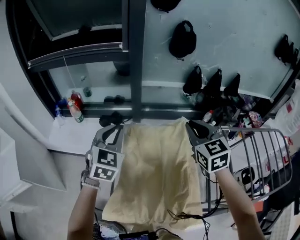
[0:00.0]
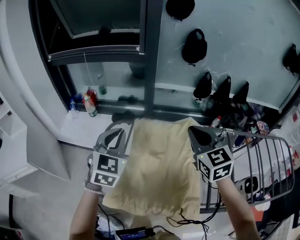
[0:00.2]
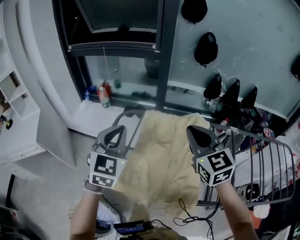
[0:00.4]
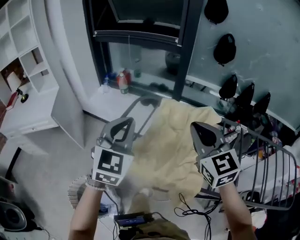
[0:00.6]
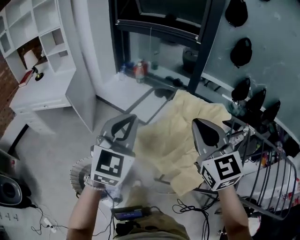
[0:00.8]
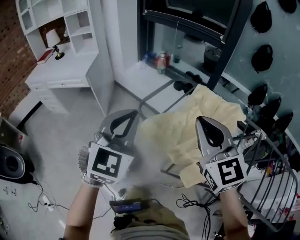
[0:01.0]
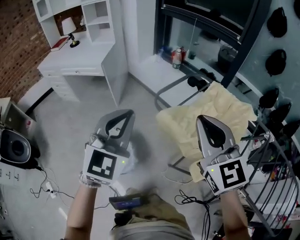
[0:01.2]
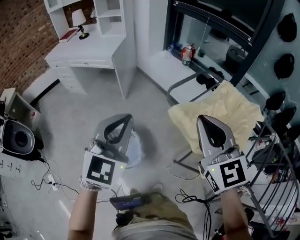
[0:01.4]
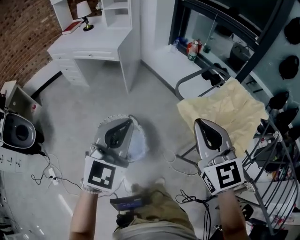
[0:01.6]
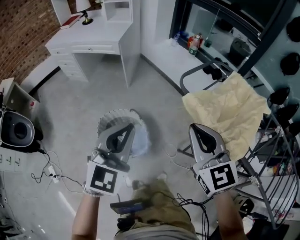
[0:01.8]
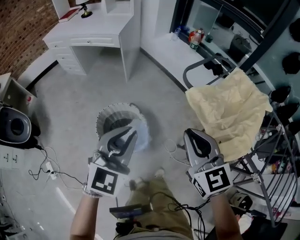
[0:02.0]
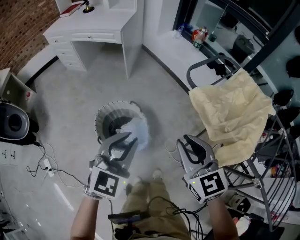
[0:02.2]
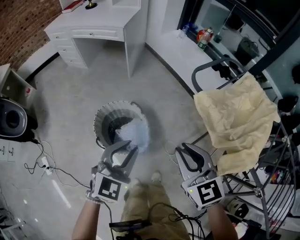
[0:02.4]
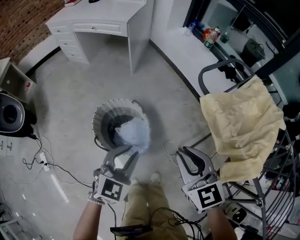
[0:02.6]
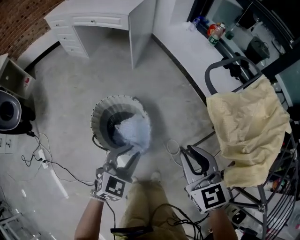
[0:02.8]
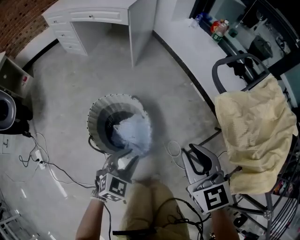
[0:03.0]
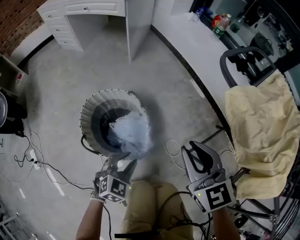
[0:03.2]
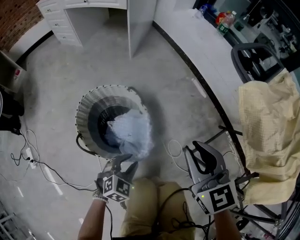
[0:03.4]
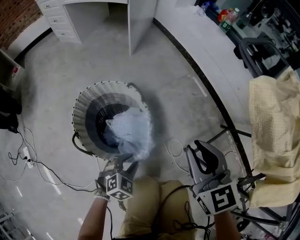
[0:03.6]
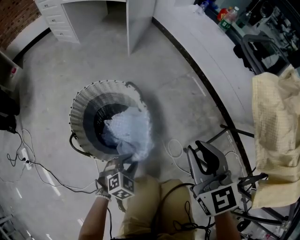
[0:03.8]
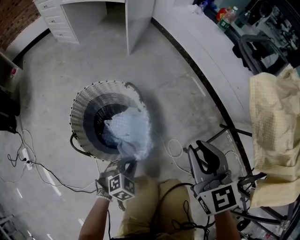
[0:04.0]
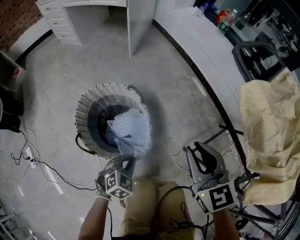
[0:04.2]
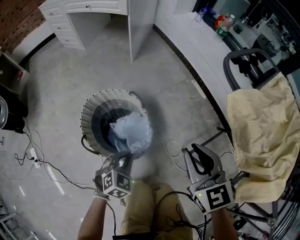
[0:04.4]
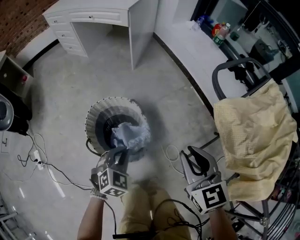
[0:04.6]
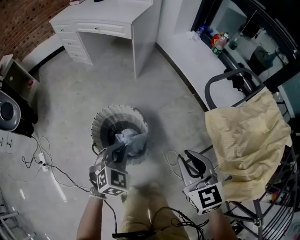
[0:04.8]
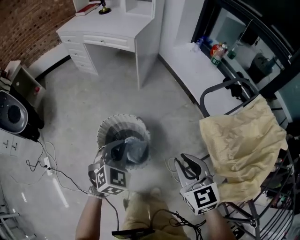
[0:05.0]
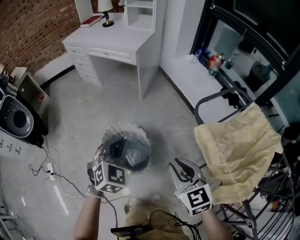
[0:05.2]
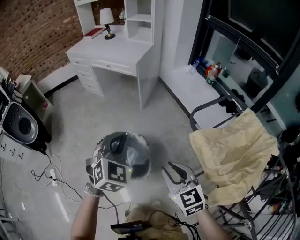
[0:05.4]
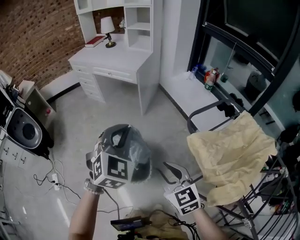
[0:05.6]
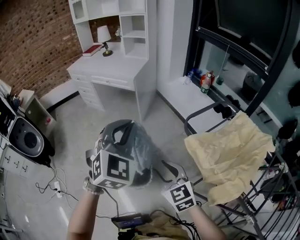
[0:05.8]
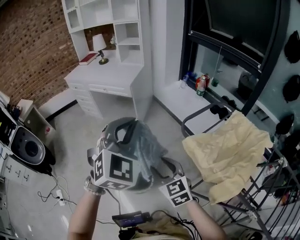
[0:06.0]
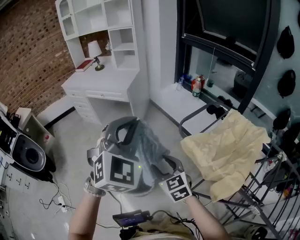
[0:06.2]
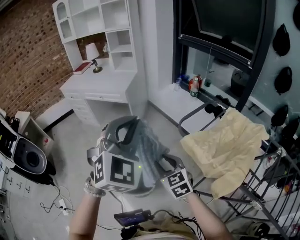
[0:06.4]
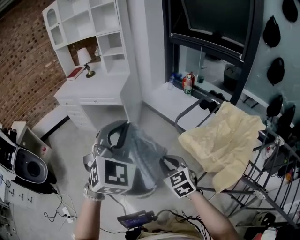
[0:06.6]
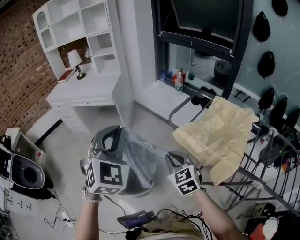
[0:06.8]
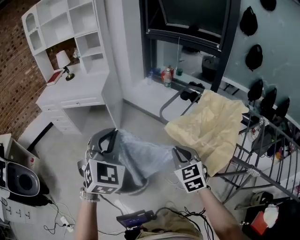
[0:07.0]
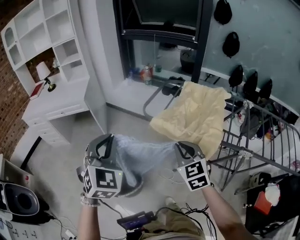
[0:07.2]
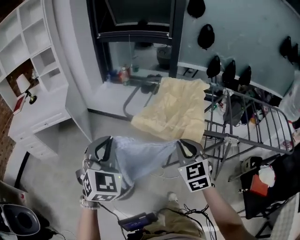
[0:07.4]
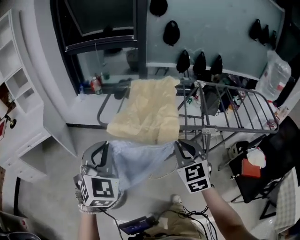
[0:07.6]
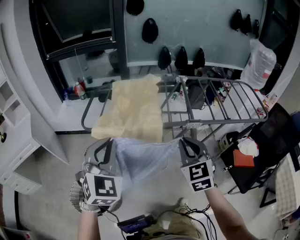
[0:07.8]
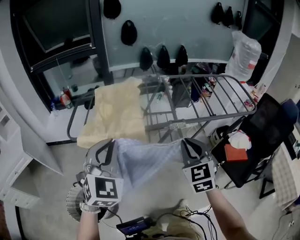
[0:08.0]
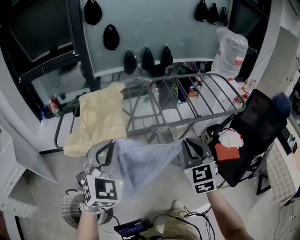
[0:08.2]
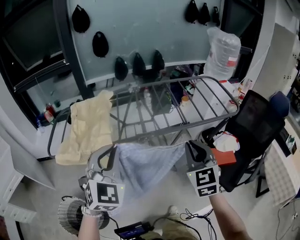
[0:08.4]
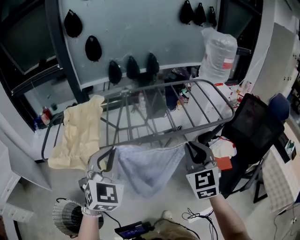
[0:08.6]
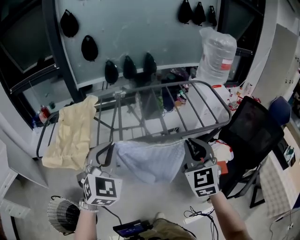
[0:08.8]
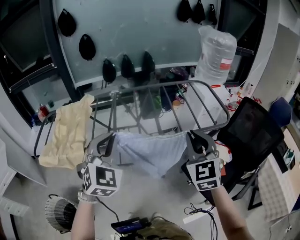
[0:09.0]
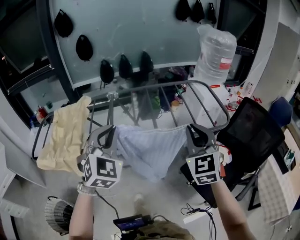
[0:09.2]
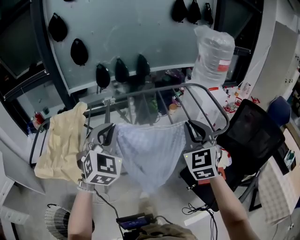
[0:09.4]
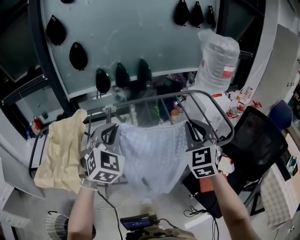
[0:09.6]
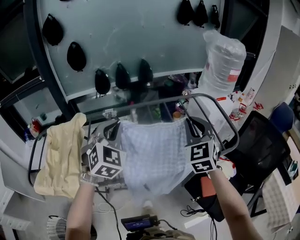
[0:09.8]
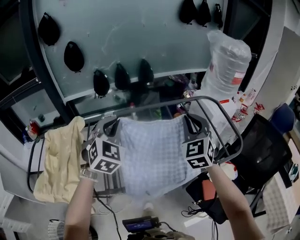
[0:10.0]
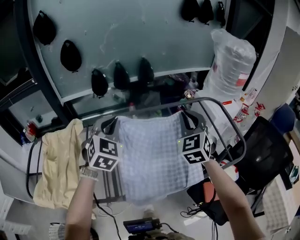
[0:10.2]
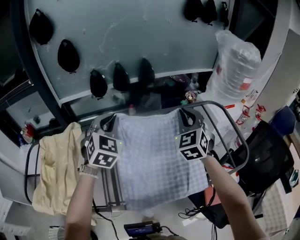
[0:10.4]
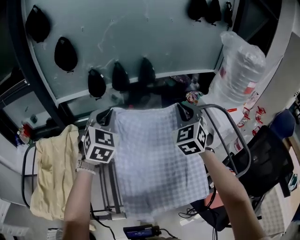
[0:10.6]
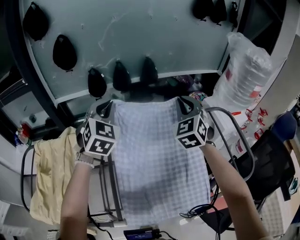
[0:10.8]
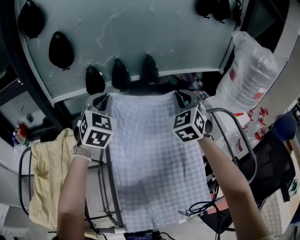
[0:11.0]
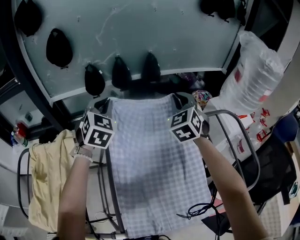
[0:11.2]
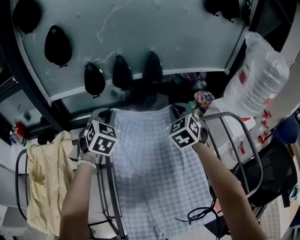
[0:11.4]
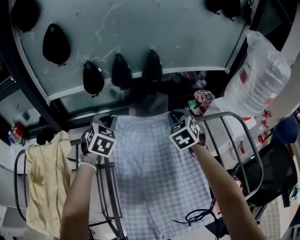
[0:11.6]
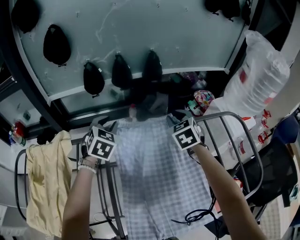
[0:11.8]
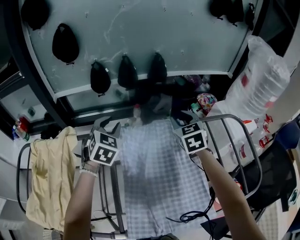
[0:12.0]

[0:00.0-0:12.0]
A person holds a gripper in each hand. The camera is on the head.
0:00.0 to 0:01.6: The pair of grippers is taken approximately 60 cm. The right gripper rotates approximately 50 degrees. Meanwhile the left gripper changes its angle by some 40 degrees.
0:01.6 to 0:03.0: The two grippers go about 35 cm downward. The left gripper rotates roughly 30 degrees, and opens up.
0:03.0 to 0:04.4: The left gripper is displaced downward by about 10 cm, and closes; the right gripper goes some 5 cm downward.
0:04.4 to 0:06.0: The right gripper moves upward, some 20 cm, and opens its fingers, while the left gripper heads upward, covering approximately 60 cm, and tips its fingers upward by some 30 degrees.
0:06.0 to 0:07.6: The right gripper ends up approximately 35 cm from where it was, turns by some 60 degrees, and closes up. The left gripper changes place by about 20 cm, and rotates roughly 40 degrees.
0:07.6 to 0:09.0: The pair of grippers is taken to the right, roughly 50 cm. The left gripper swivels roughly 20 degrees. Meanwhile the right gripper rotates about 30 degrees.
0:09.0 to 0:10.4: The grippers both shift forward by roughly 40 cm.
0:10.4 to 0:12.0: Both grippers move forward, downward and to the left, about 20 cm. The left gripper opens; the right gripper turns by roughly 30 degrees, and opens its fingers.

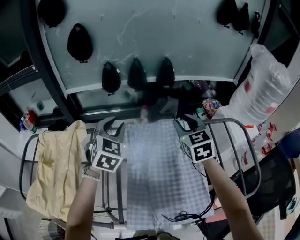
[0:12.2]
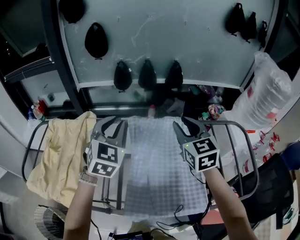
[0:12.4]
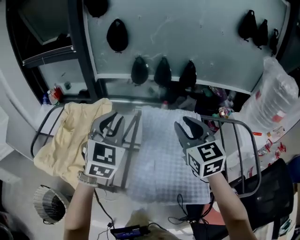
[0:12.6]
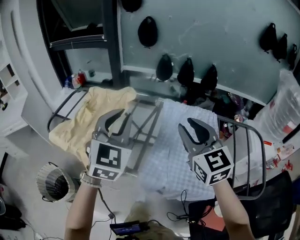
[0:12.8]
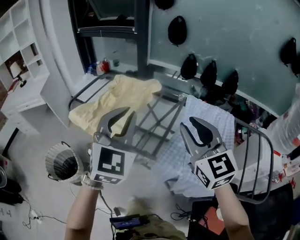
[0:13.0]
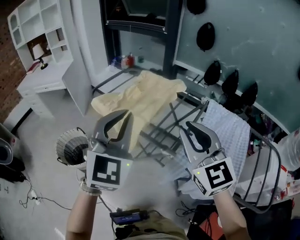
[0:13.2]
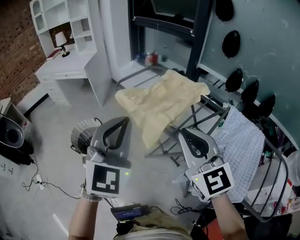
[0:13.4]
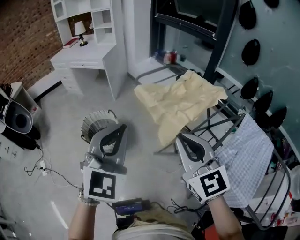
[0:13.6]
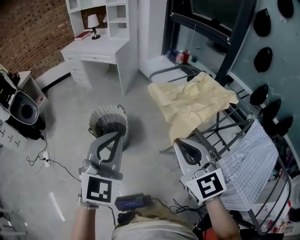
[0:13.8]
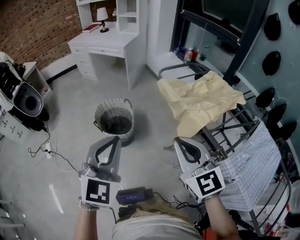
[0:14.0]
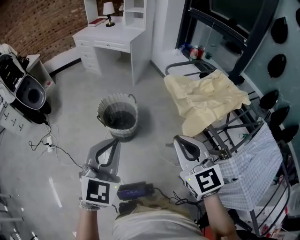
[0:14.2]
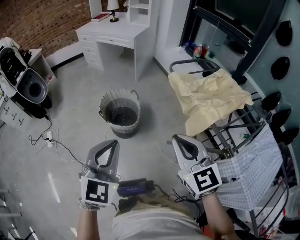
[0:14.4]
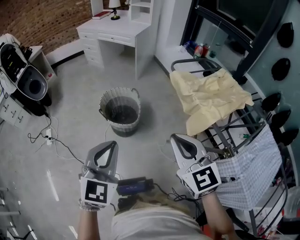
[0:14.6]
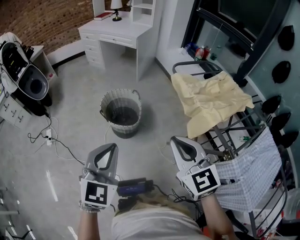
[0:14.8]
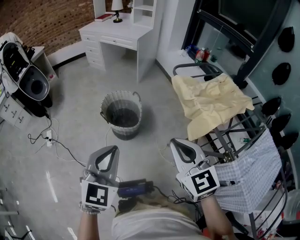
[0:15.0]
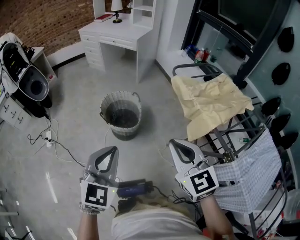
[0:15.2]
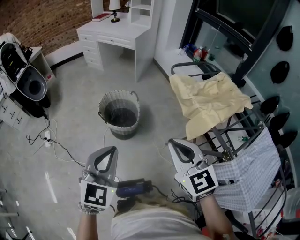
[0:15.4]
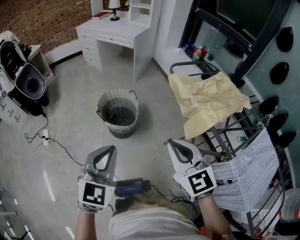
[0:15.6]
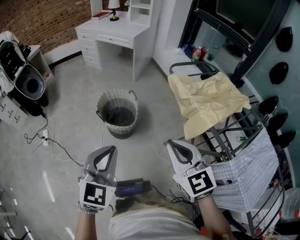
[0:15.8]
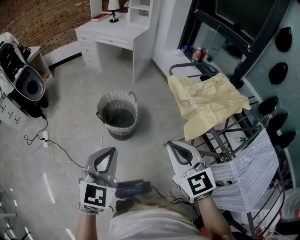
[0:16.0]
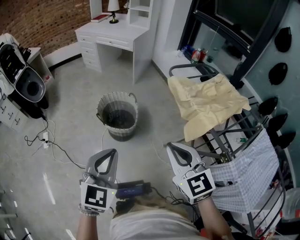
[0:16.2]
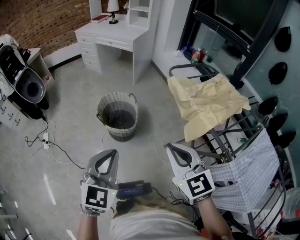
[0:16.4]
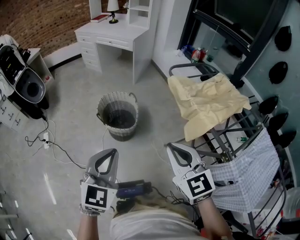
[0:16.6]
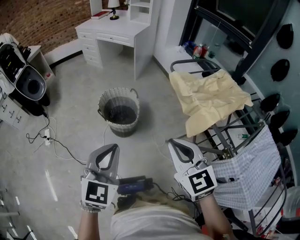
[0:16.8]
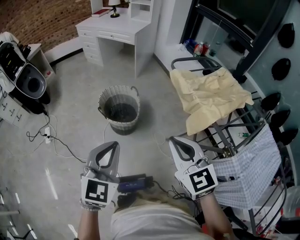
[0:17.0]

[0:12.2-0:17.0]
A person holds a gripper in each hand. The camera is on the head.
0:12.2 to 0:13.8: The two grippers travel together, some 70 cm. The left gripper swivels roughly 60 degrees, and closes its fingers. Meanwhile the right gripper swivels about 80 degrees, and closes up.
0:13.8 to 0:15.4: The grippers both shift to the left and downward by about 15 cm.
0:15.4 to 0:17.0: Both grippers stay about where they are.

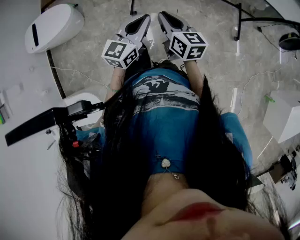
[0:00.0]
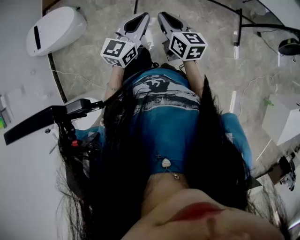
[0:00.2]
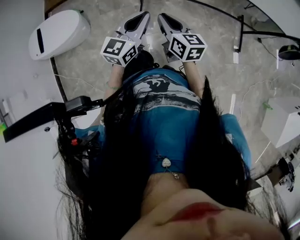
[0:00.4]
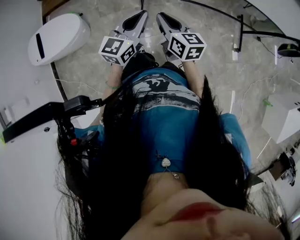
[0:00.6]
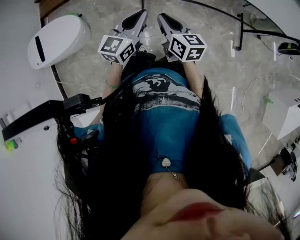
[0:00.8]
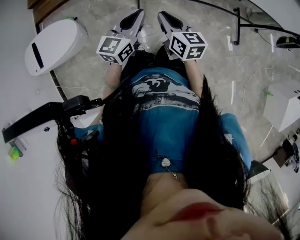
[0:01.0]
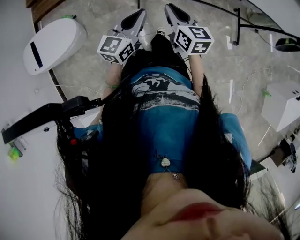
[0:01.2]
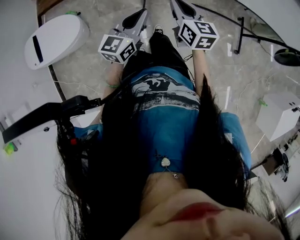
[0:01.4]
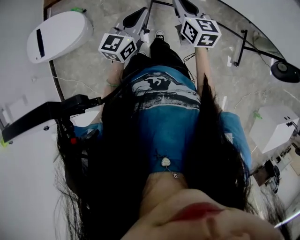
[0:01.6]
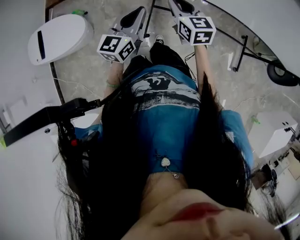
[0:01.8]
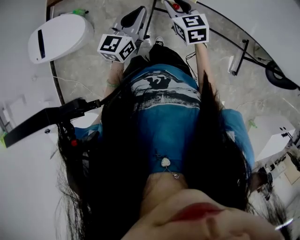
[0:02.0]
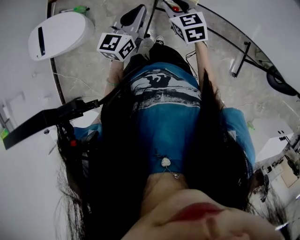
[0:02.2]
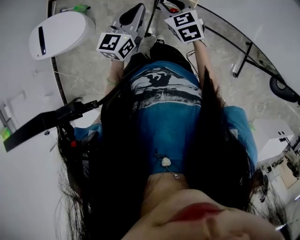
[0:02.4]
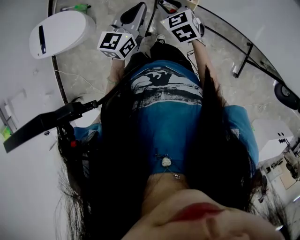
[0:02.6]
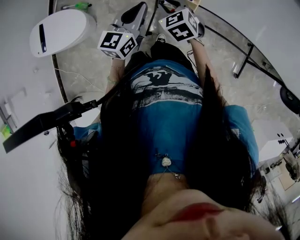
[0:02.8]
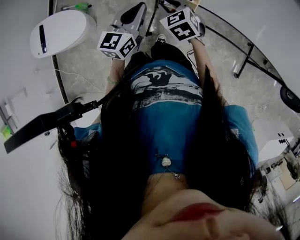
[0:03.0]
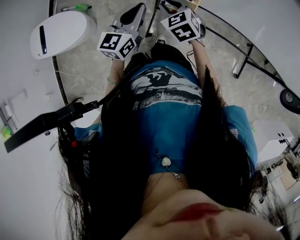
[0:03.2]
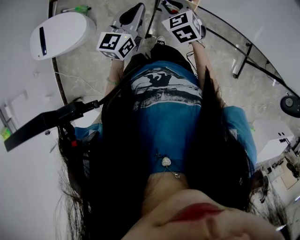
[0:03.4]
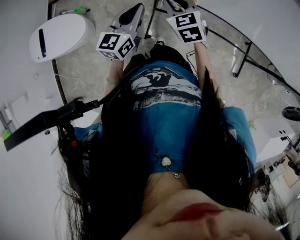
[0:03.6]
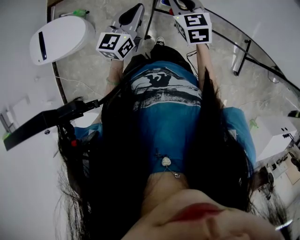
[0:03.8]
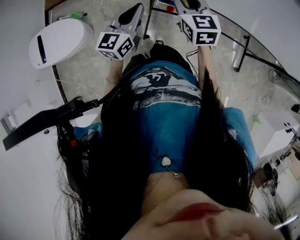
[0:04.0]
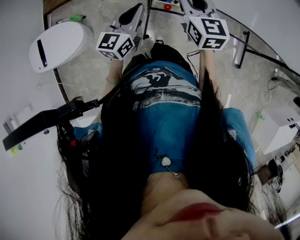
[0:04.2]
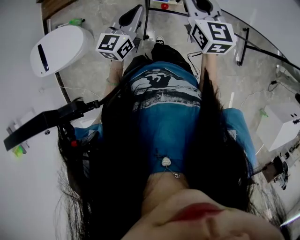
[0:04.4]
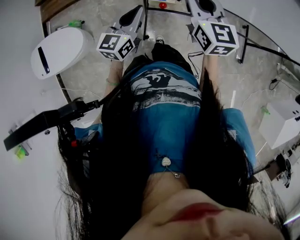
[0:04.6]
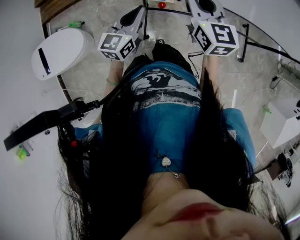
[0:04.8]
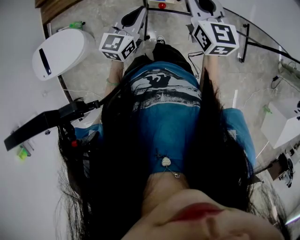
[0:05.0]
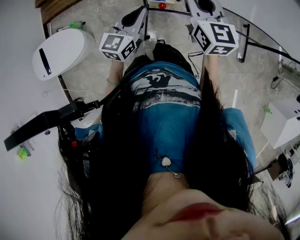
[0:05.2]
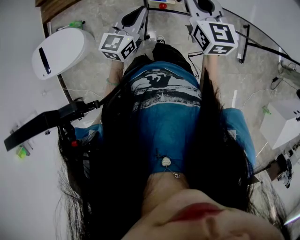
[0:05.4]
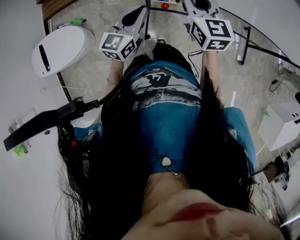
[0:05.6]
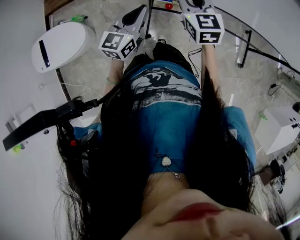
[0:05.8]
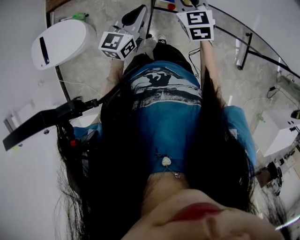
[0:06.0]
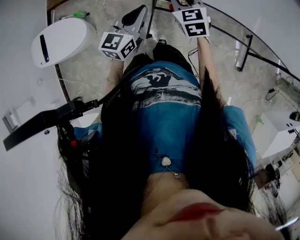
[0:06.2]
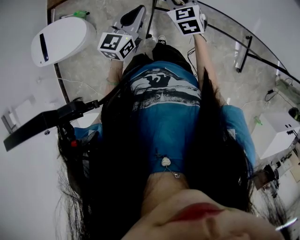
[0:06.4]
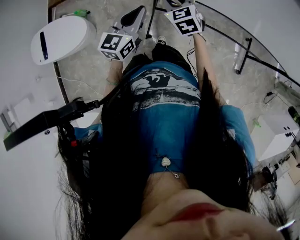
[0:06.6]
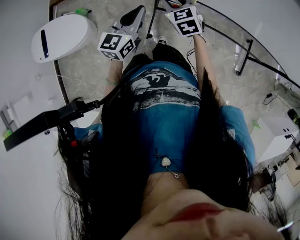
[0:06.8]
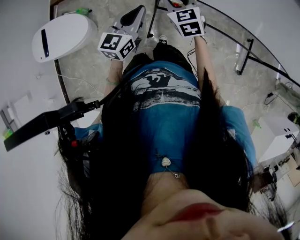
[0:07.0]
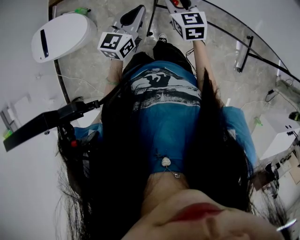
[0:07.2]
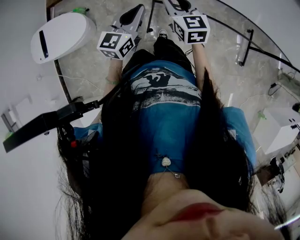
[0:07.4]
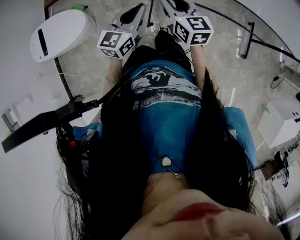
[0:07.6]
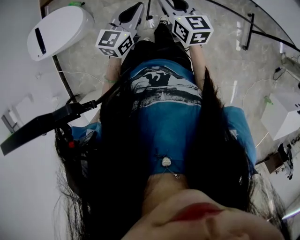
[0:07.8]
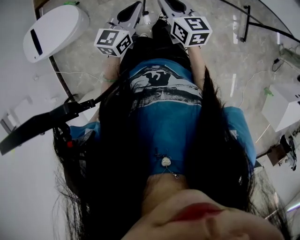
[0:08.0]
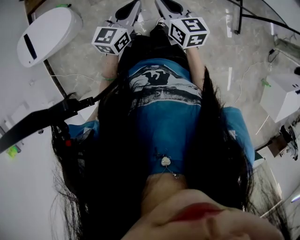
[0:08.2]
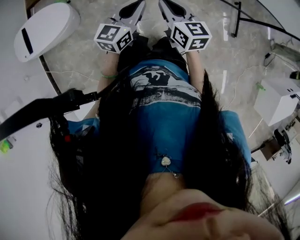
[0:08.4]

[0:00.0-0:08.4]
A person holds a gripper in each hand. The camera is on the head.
0:00.0 to 0:01.4: The pair of grippers is taken forward and to the left, approximately 40 cm.
0:01.4 to 0:02.8: The right gripper travels to the left and forward by approximately 10 cm, and twists approximately 40 degrees counterclockwise, seen from behind. The left gripper travels forward by about 5 cm.
0:02.8 to 0:04.2: The right gripper is displaced upward and to the right by some 15 cm, and changes its angle by roughly 40 degrees.
0:04.2 to 0:05.6: The grippers stay close to where they were, moving slightly.
0:05.6 to 0:07.0: The right gripper is displaced downward and to the left by approximately 15 cm, and rotates some 30 degrees.
0:07.0 to 0:08.4: The two grippers go roughly 25 cm backward. The right gripper swivels roughly 30 degrees.
